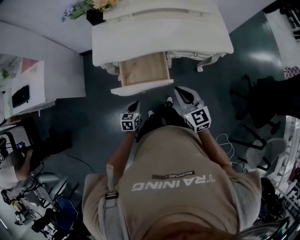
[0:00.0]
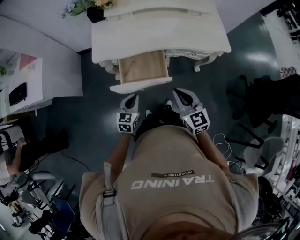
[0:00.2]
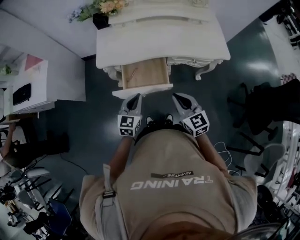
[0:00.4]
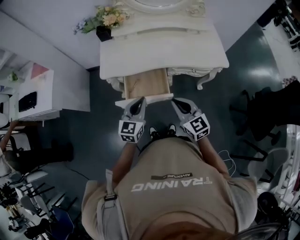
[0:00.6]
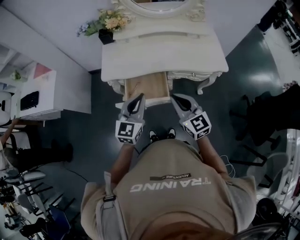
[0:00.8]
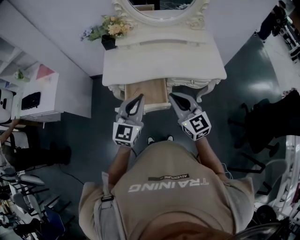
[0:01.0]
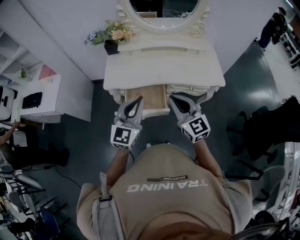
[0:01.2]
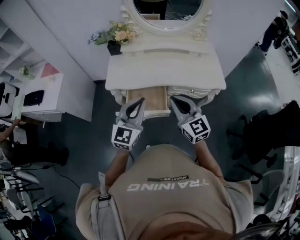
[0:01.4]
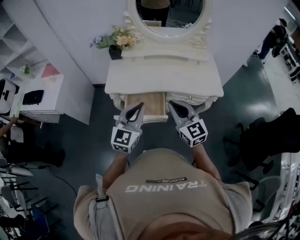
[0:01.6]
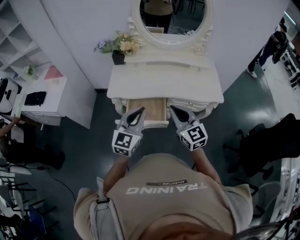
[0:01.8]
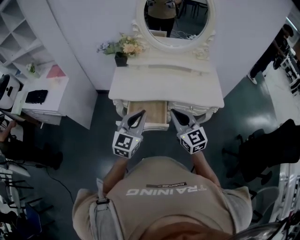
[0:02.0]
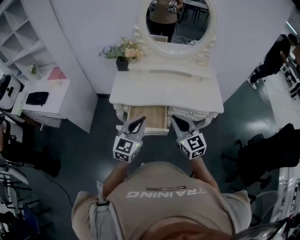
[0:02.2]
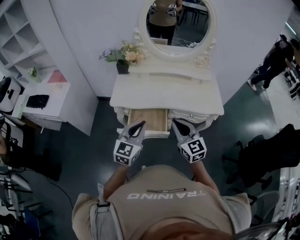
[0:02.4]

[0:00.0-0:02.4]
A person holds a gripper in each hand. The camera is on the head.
0:00.0 to 0:01.2: The right gripper shifts some 15 cm upward; the left gripper is displaced upward by approximately 40 cm, and tips its fingers upward by some 40 degrees.
0:01.2 to 0:02.4: The grippers stay close to where they were, moving slightly.

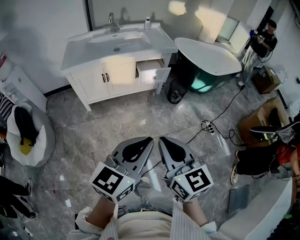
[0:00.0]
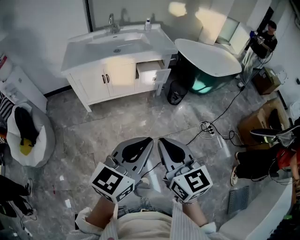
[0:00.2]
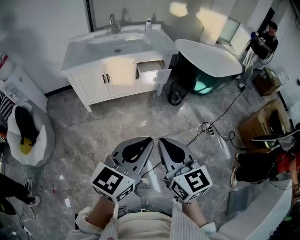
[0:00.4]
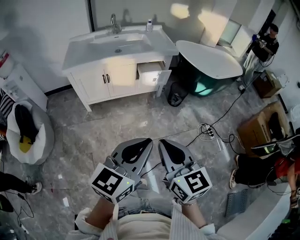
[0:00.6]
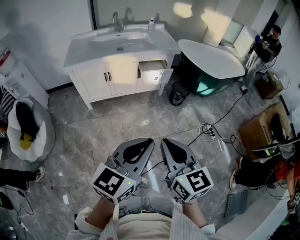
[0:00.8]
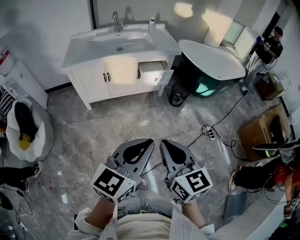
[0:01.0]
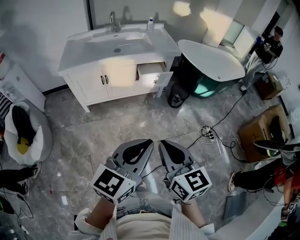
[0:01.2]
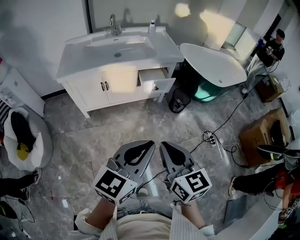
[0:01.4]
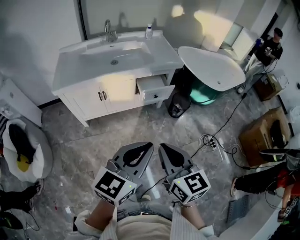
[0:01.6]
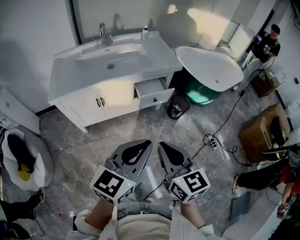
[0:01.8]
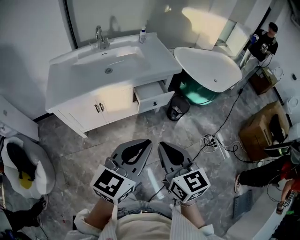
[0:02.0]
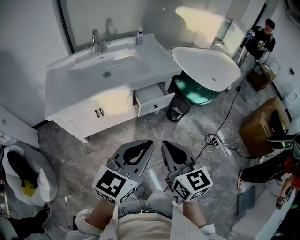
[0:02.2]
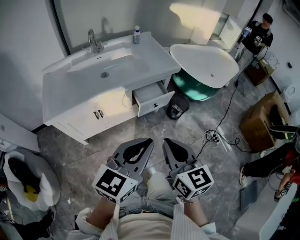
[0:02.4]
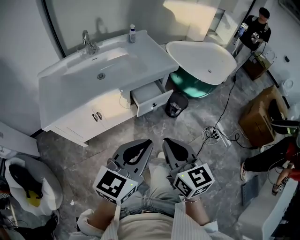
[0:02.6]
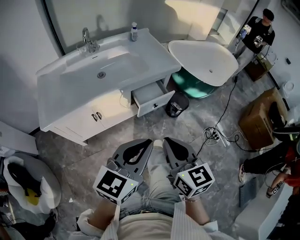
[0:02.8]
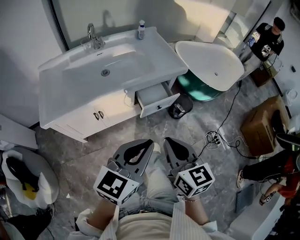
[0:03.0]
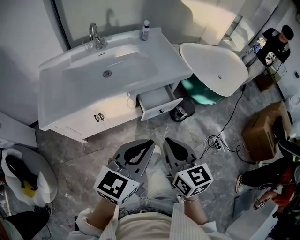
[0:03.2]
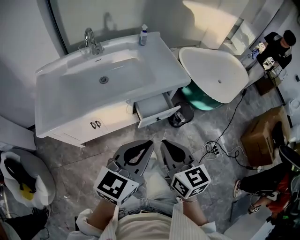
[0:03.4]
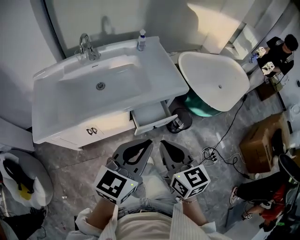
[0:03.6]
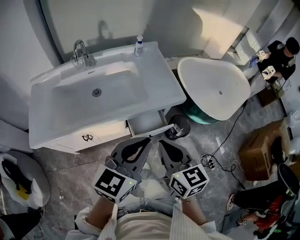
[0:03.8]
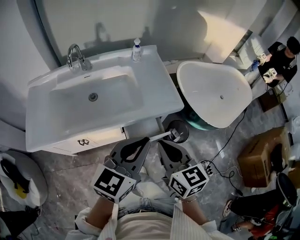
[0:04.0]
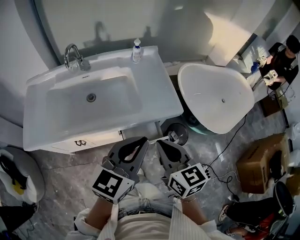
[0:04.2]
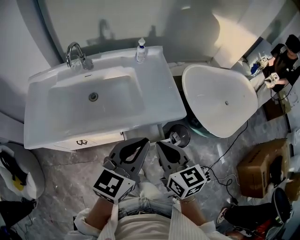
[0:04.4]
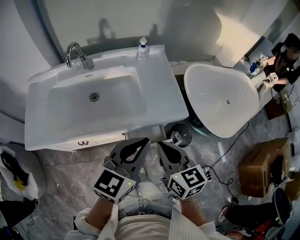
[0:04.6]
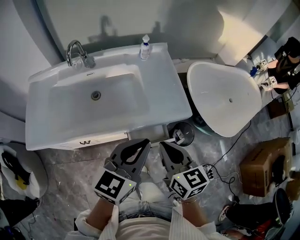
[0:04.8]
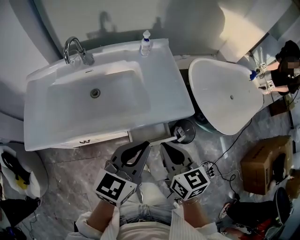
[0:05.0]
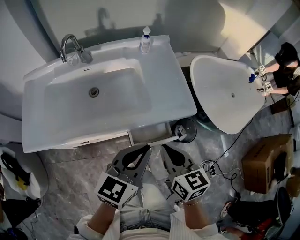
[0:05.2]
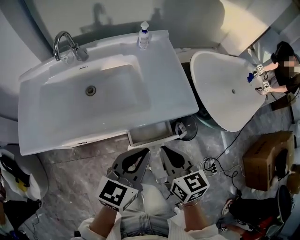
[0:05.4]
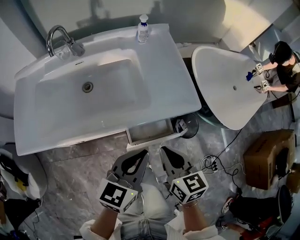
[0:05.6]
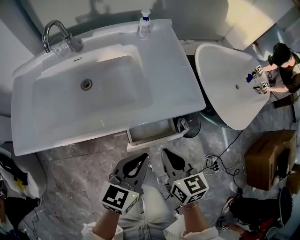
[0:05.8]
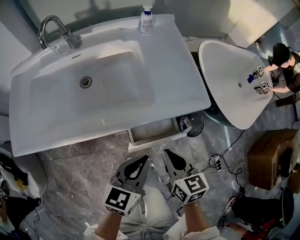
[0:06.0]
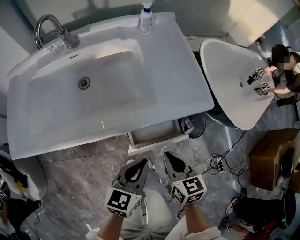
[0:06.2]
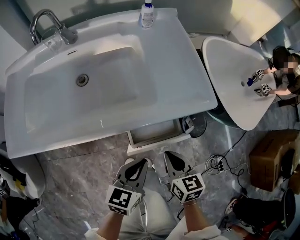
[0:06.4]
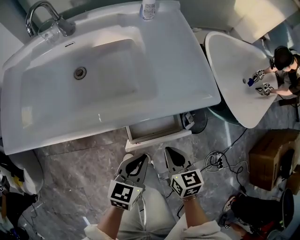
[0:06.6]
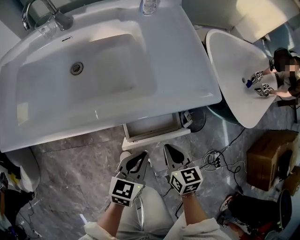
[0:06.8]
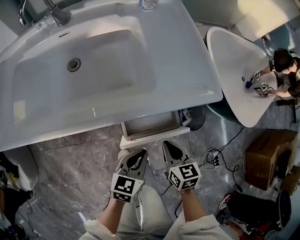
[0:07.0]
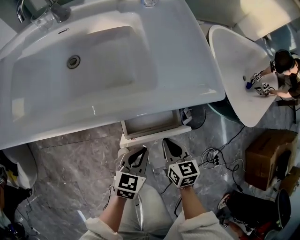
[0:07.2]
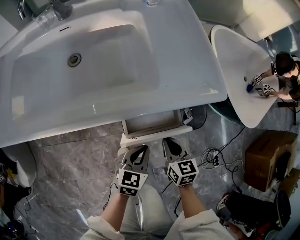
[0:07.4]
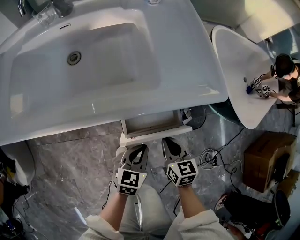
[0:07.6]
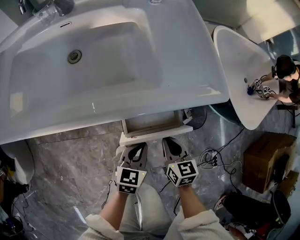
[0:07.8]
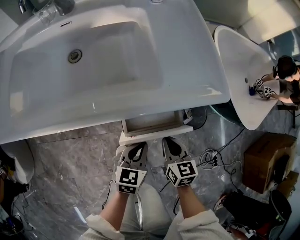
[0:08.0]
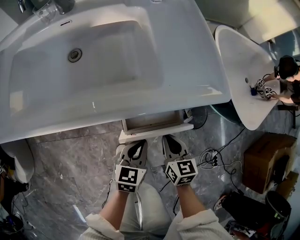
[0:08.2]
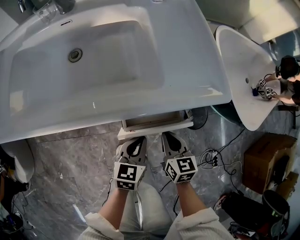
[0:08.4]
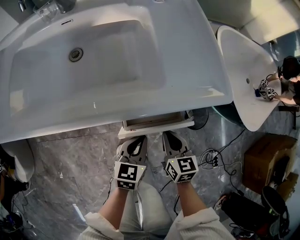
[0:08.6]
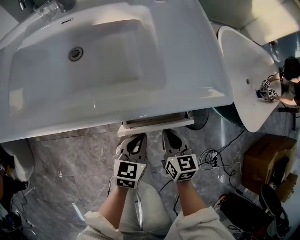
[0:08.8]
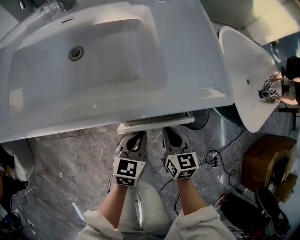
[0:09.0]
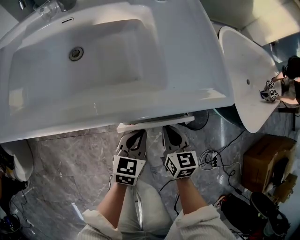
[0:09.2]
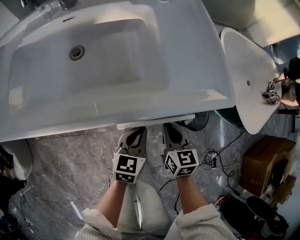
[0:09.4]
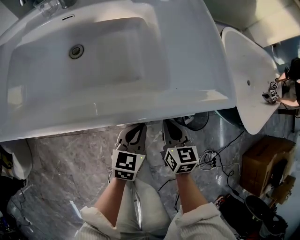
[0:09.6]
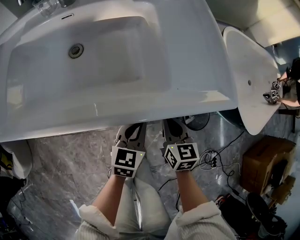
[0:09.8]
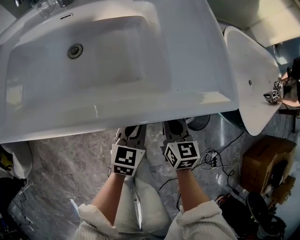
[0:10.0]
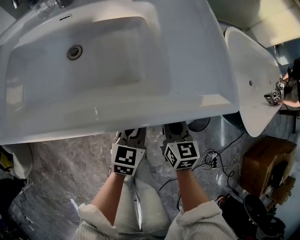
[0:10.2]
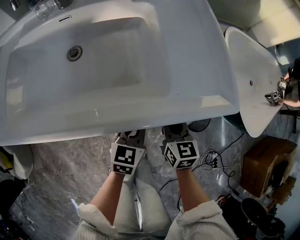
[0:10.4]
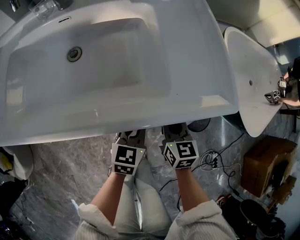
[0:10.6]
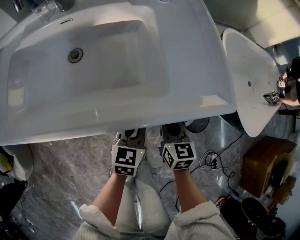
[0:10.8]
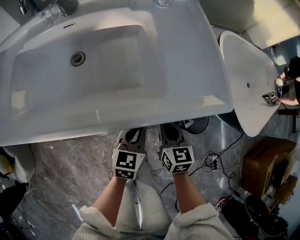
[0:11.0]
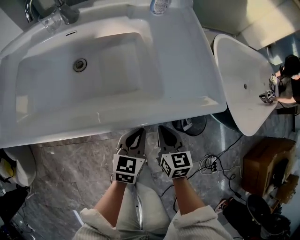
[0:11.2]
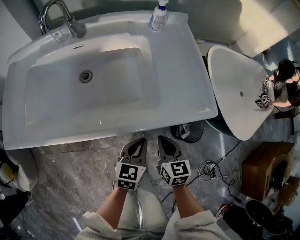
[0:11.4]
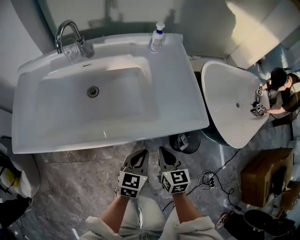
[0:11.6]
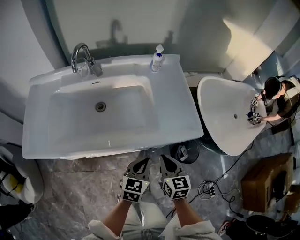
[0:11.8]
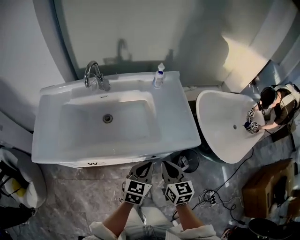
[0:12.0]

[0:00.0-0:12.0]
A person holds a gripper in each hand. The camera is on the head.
0:00.0 to 0:01.6: Both grippers move forward, approximately 15 cm.
0:01.6 to 0:03.0: The two grippers go approximately 20 cm forward and to the left.
0:03.0 to 0:04.4: Both grippers travel together forward, about 25 cm.
0:04.4 to 0:06.0: Both grippers move downward, approximately 20 cm.
0:06.0 to 0:07.6: Both grippers move downward, some 20 cm.
0:07.6 to 0:09.0: The left gripper goes some 5 cm forward.
0:09.0 to 0:10.4: Both grippers travel together forward, some 5 cm.
0:10.4 to 0:12.0: Both grippers move upward, about 20 cm.

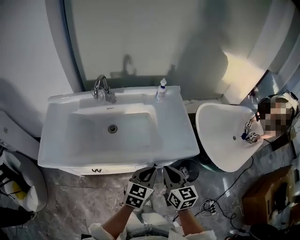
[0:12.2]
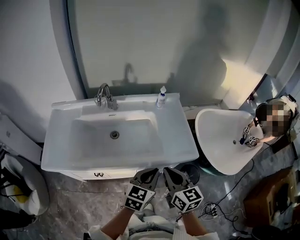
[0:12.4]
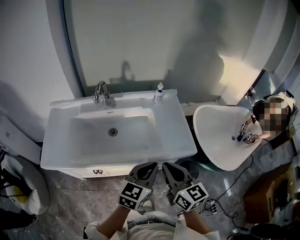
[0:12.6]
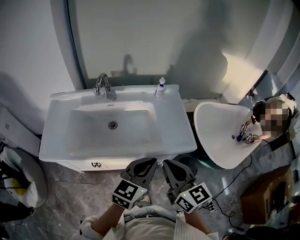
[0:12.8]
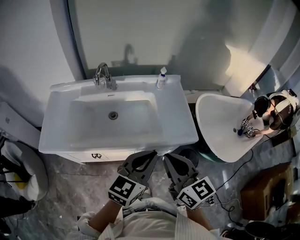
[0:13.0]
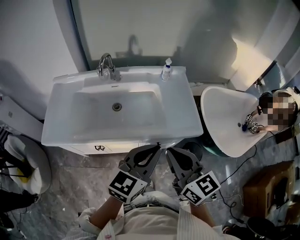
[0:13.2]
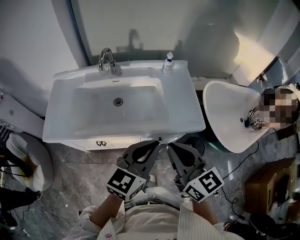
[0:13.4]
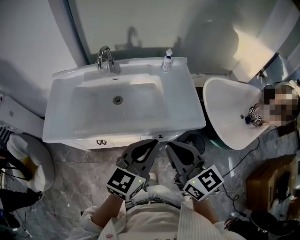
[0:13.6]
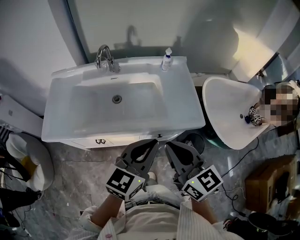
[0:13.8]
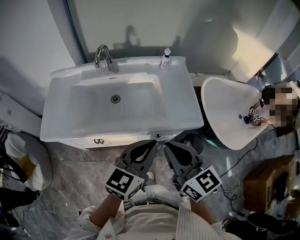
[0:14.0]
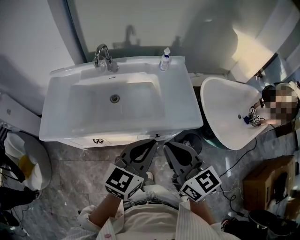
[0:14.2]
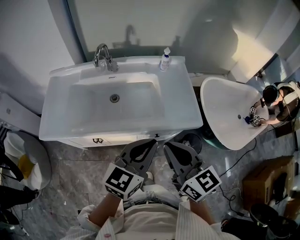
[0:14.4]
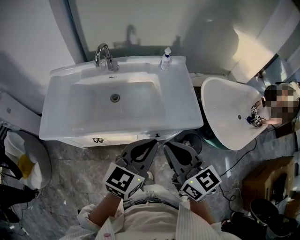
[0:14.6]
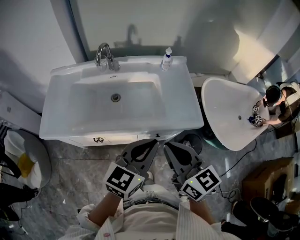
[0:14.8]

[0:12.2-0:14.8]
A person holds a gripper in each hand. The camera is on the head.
0:12.2 to 0:13.4: Both grippers travel together upward, about 15 cm.
0:13.4 to 0:14.8: Both grippers stay about where they are.

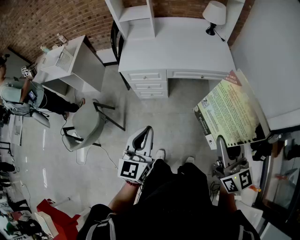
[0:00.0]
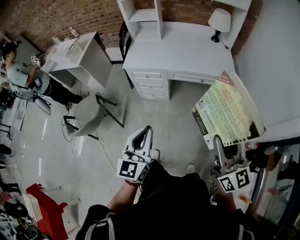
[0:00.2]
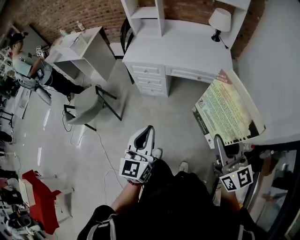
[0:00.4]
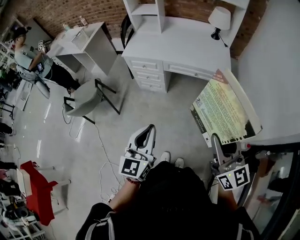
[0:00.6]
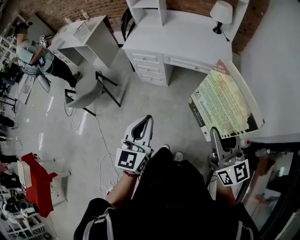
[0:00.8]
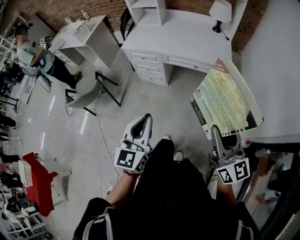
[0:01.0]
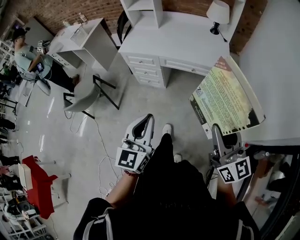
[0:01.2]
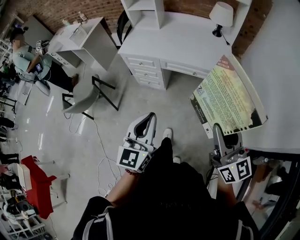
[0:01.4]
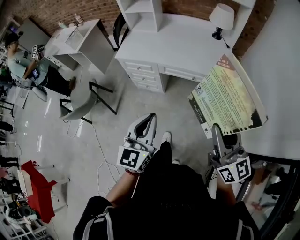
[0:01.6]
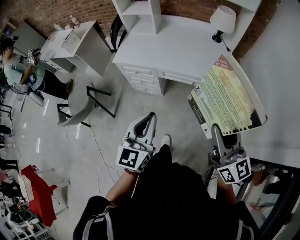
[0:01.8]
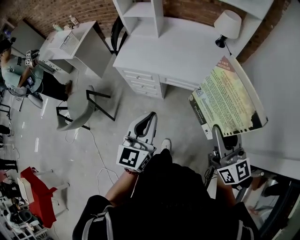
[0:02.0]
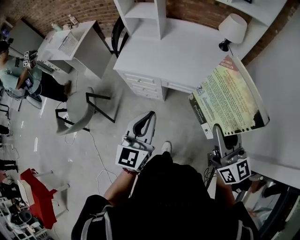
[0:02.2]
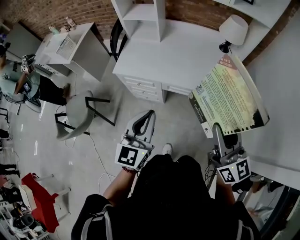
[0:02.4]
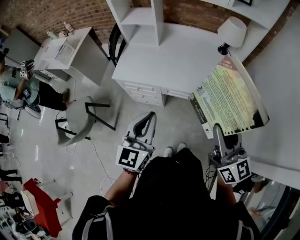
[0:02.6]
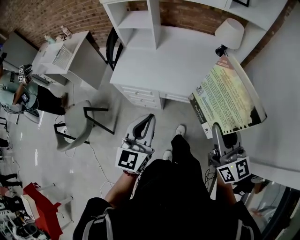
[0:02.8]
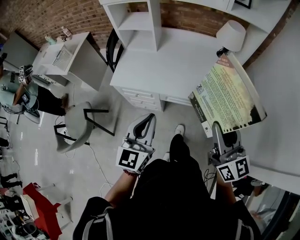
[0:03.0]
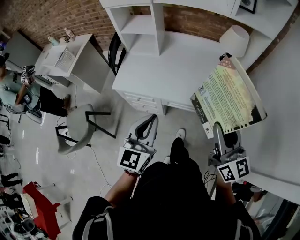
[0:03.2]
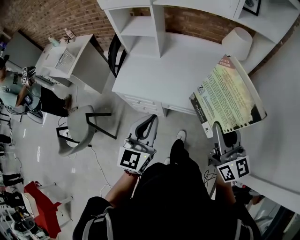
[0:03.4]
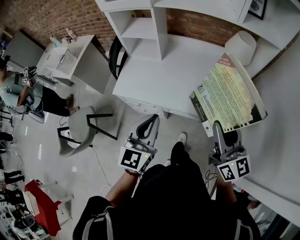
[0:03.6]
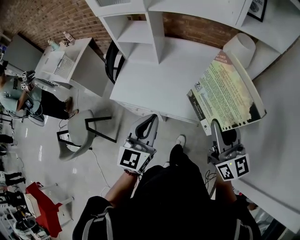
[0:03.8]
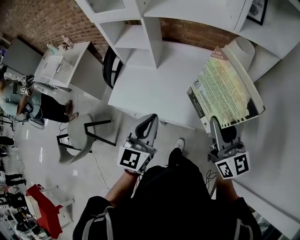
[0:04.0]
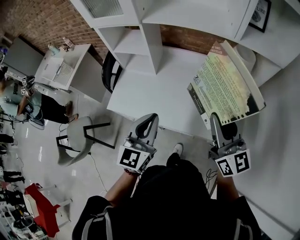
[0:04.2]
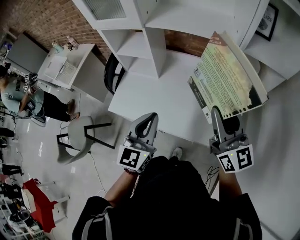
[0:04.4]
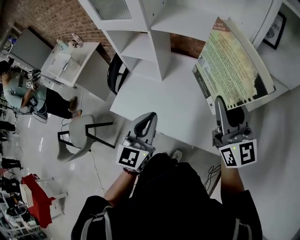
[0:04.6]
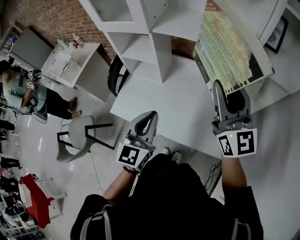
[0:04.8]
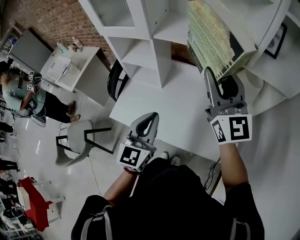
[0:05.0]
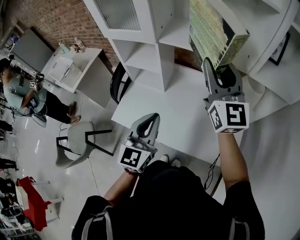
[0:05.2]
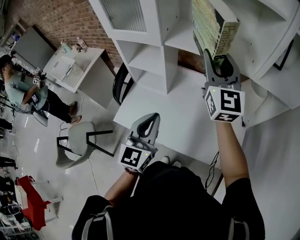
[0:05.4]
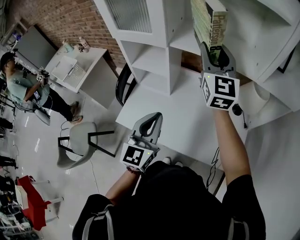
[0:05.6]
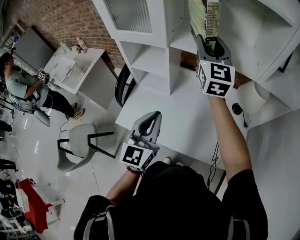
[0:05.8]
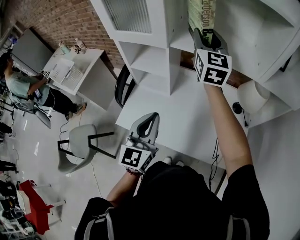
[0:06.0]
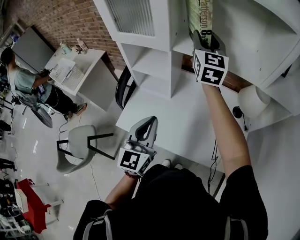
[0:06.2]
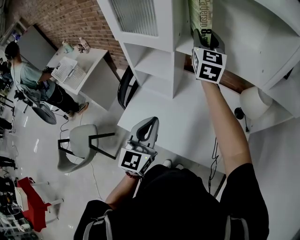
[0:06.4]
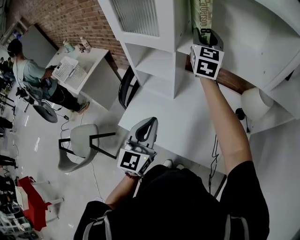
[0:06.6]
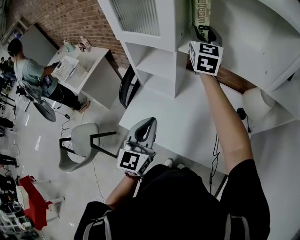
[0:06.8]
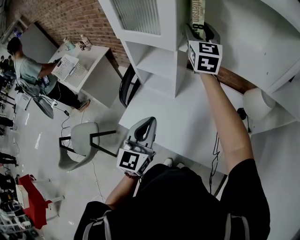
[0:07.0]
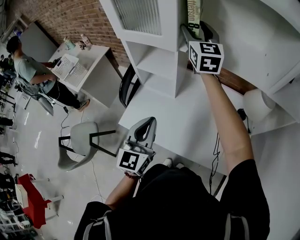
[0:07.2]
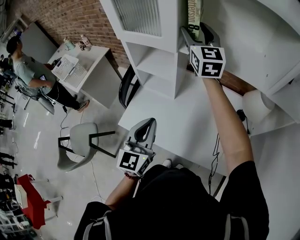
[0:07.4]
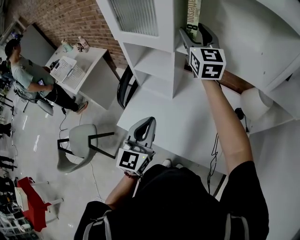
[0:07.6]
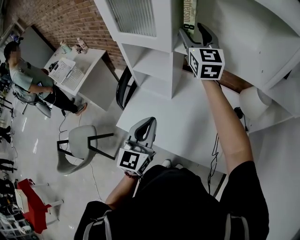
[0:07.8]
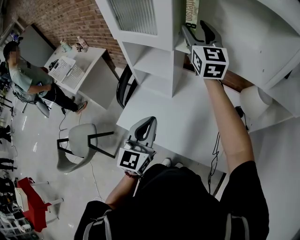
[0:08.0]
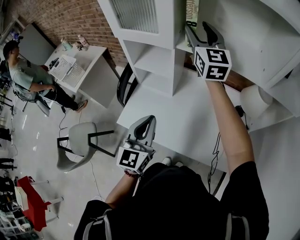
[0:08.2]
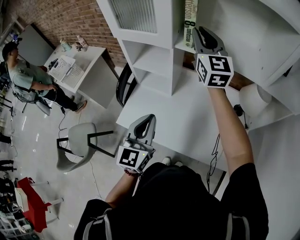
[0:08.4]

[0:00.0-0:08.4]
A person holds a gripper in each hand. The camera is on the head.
0:00.0 to 0:01.4: The grippers both shift to the right by approximately 20 cm.
0:01.4 to 0:02.8: Both grippers travel together forward, some 25 cm.
0:02.8 to 0:04.2: Both grippers travel together forward, some 25 cm.
0:04.2 to 0:05.6: The right gripper is displaced forward and upward by some 35 cm, and turns by about 20 degrees; the left gripper moves forward and to the left, approximately 10 cm.
0:05.6 to 0:07.0: The left gripper goes some 5 cm to the left. Meanwhile the right gripper is displaced forward and to the left by about 15 cm.
0:07.0 to 0:08.4: The right gripper shifts roughly 5 cm backward, and closes.
